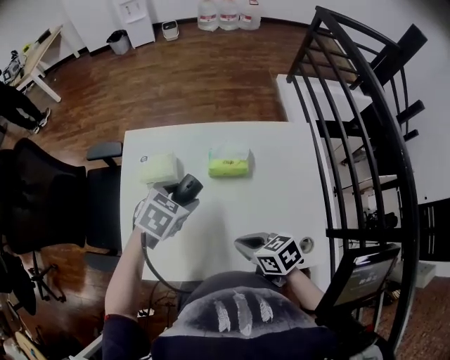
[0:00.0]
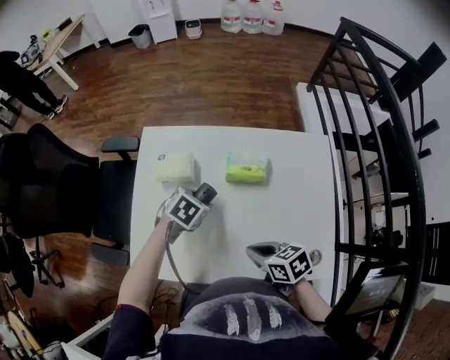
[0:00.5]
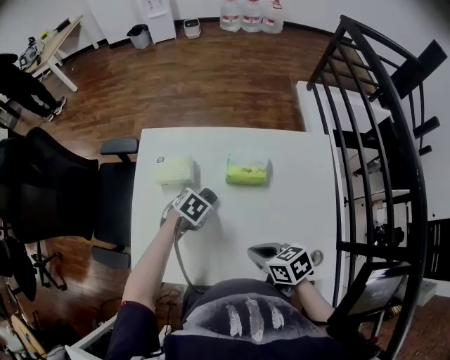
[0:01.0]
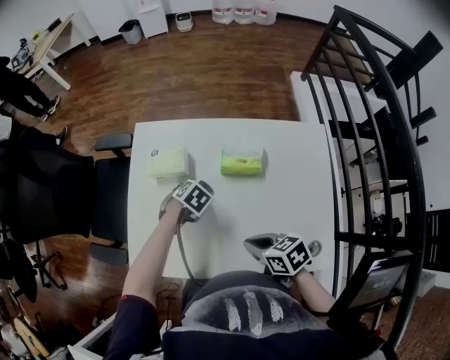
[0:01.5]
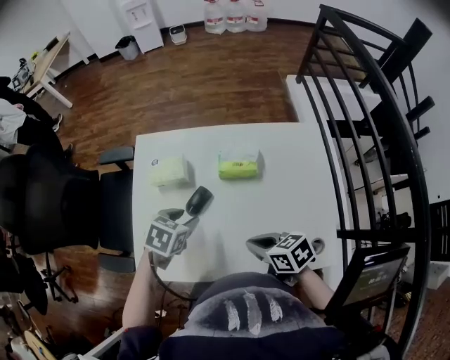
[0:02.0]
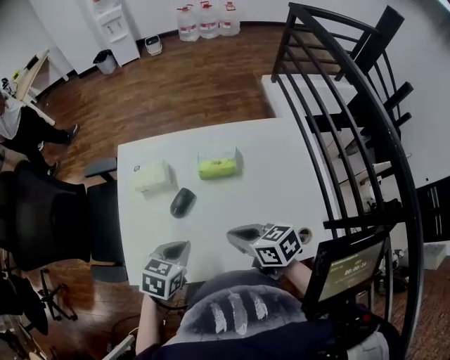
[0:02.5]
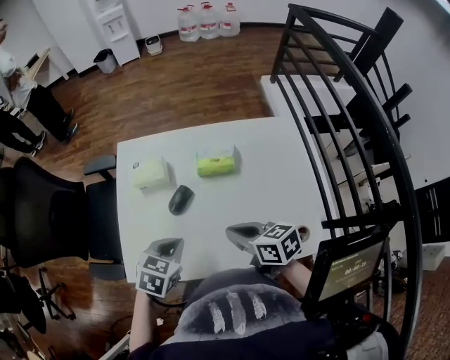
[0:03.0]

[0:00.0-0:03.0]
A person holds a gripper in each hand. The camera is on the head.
0:00.0 to 0:01.5: The left gripper travels downward by some 15 cm, and rotates some 20 degrees.
0:01.5 to 0:03.0: The left gripper is displaced upward by about 15 cm, rotates approximately 30 degrees, and closes up, while the right gripper travels upward by about 5 cm.

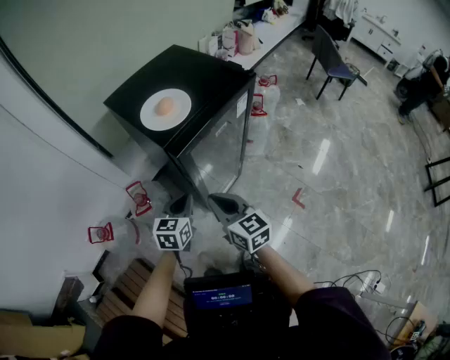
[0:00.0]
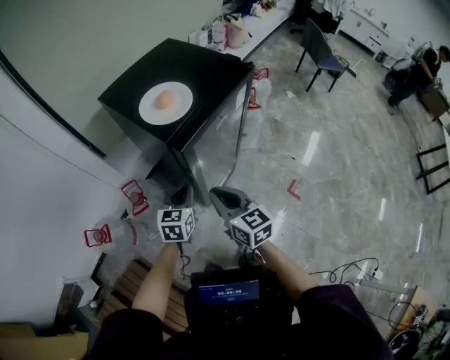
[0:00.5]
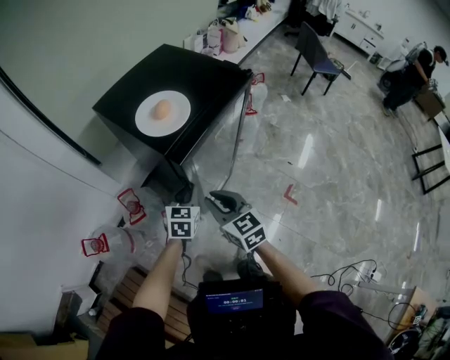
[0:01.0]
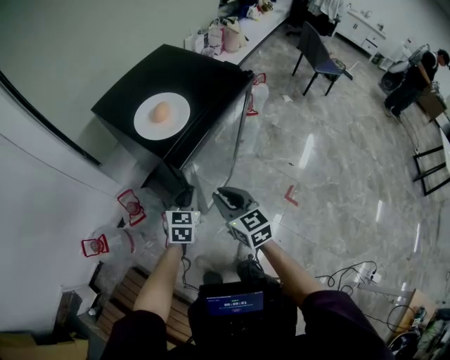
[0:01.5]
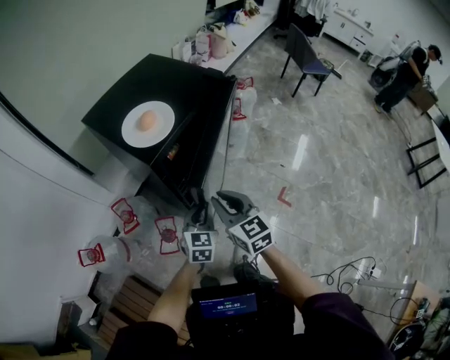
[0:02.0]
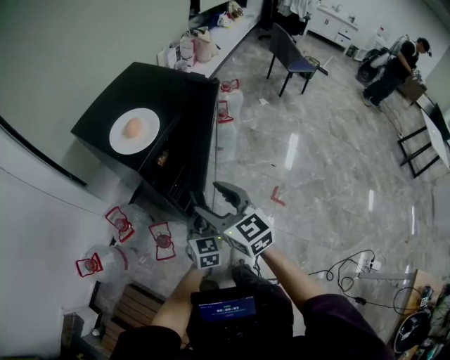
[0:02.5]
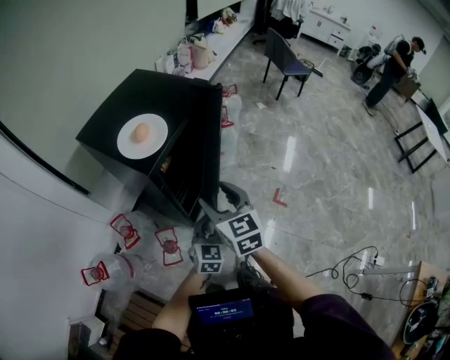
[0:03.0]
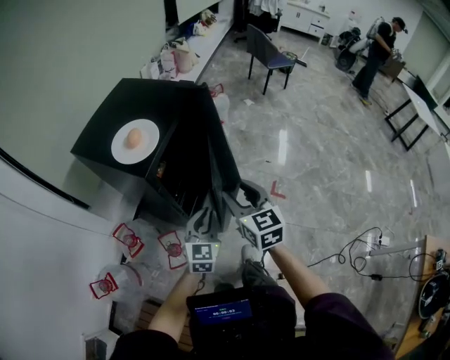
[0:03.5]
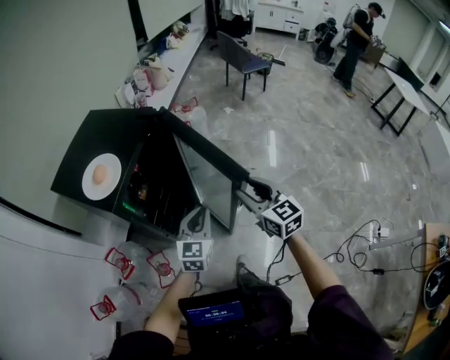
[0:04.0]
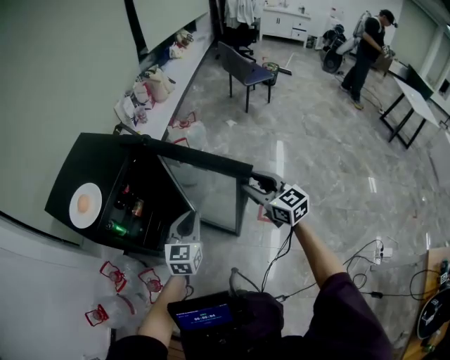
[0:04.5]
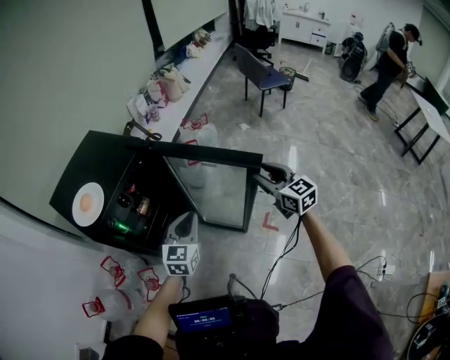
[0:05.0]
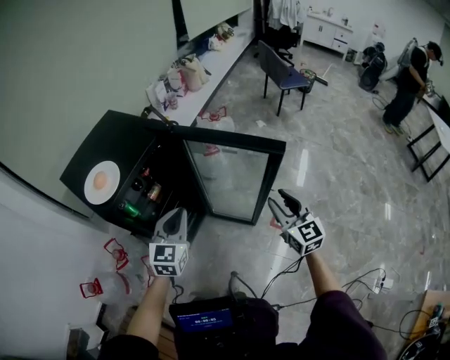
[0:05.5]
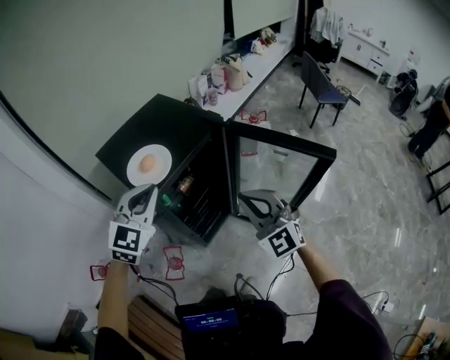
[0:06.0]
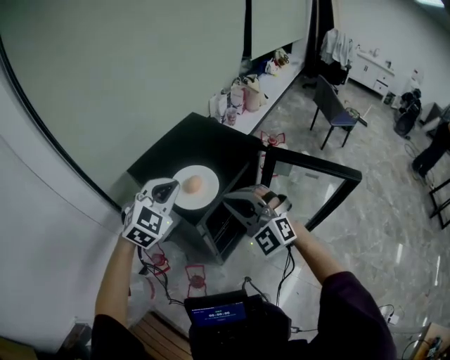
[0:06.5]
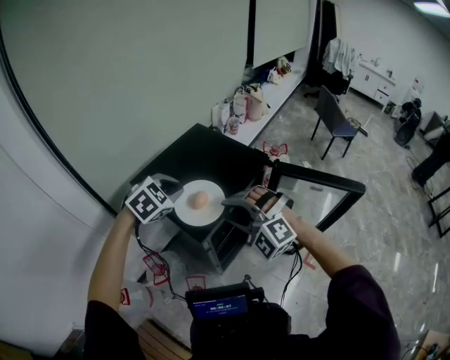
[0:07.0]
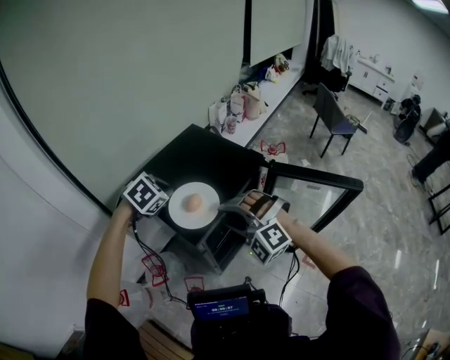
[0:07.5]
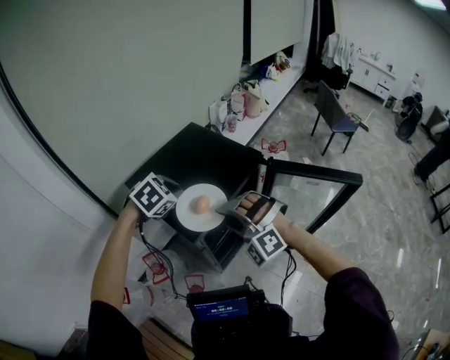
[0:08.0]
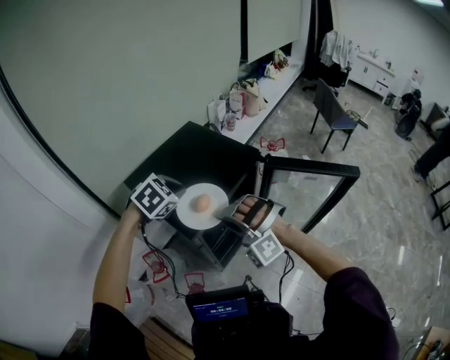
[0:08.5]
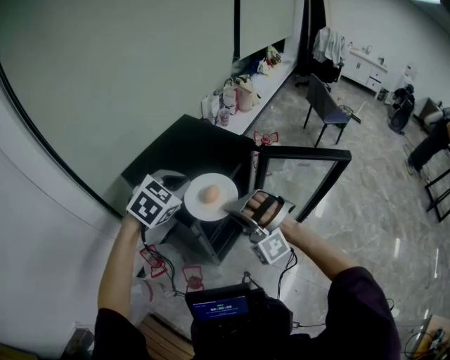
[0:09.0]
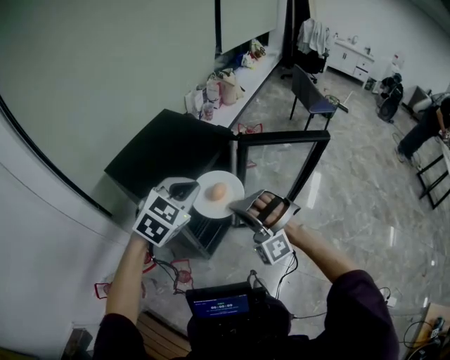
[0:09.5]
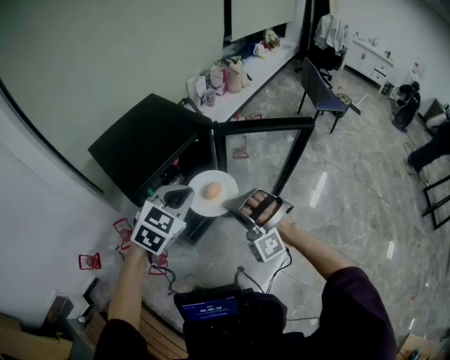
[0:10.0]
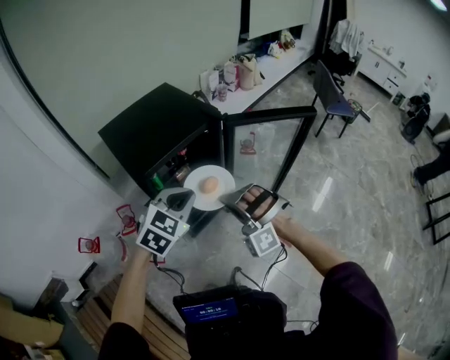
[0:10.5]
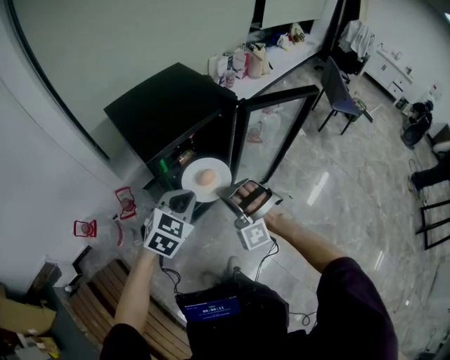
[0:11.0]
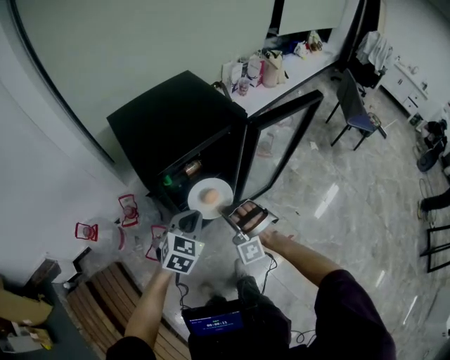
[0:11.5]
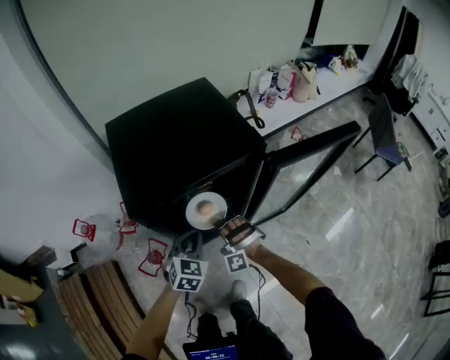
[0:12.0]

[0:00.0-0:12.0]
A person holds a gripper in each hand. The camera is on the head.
0:00.0 to 0:02.0: The left gripper travels to the right by approximately 10 cm; the right gripper ends up some 5 cm from where it was.
0:02.0 to 0:04.0: The left gripper heads to the right and upward, covering roughly 15 cm, and rotates some 20 degrees; the right gripper is displaced to the right by about 20 cm, changes its angle by about 20 degrees, and opens its fingers.
0:04.0 to 0:06.0: The right gripper heads to the left, upward and forward, covering some 15 cm, turns by about 50 degrees, and closes its fingers, while the left gripper shifts approximately 30 cm upward and to the left, and changes its angle by roughly 30 degrees.
0:06.0 to 0:08.0: The left gripper heads forward and to the left, covering about 15 cm, and points its fingers approximately 40 degrees further downward, while the right gripper heads to the left and forward, covering roughly 20 cm, twists some 50 degrees counterclockwise, seen from behind, and opens its fingers.
0:08.0 to 0:10.0: The grippers both shift to the right and backward by about 25 cm. The right gripper closes up. The left gripper changes its angle by about 20 degrees.
0:10.0 to 0:12.0: The right gripper travels downward, forward and to the left by roughly 30 cm, while the left gripper goes approximately 25 cm downward, and turns by about 40 degrees.

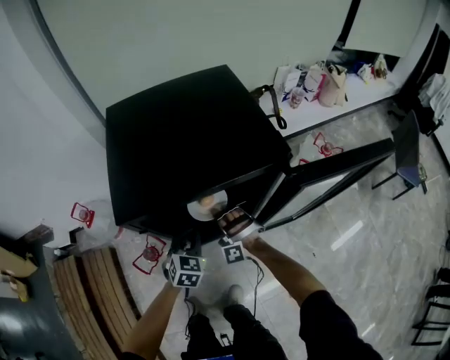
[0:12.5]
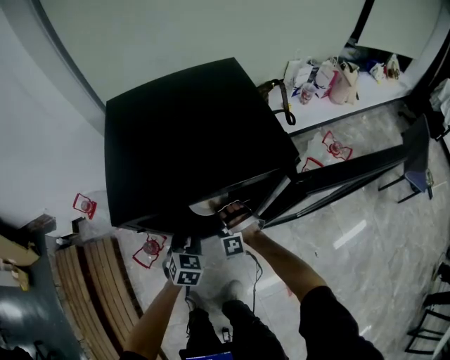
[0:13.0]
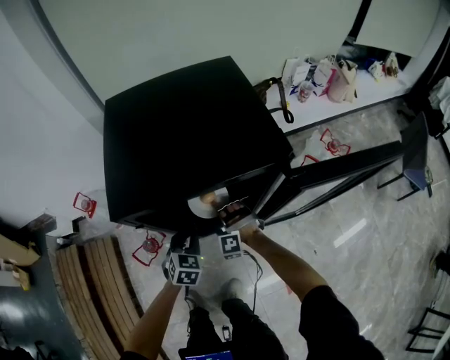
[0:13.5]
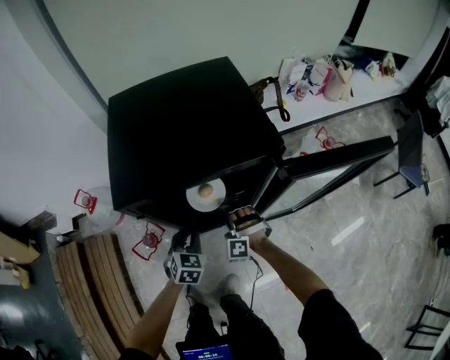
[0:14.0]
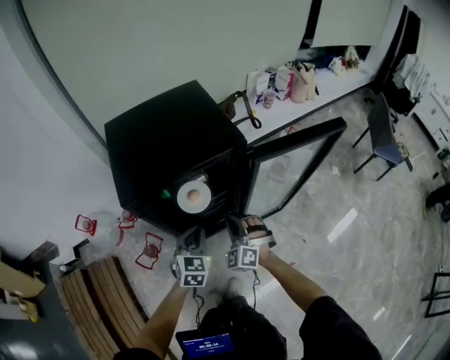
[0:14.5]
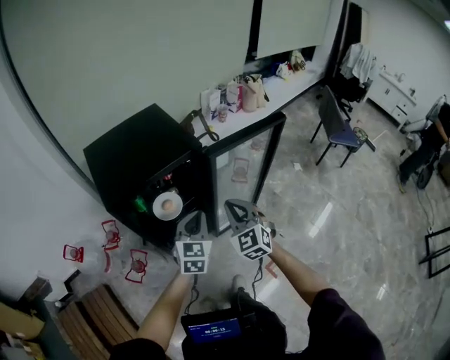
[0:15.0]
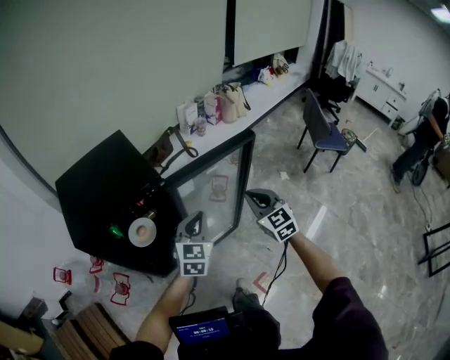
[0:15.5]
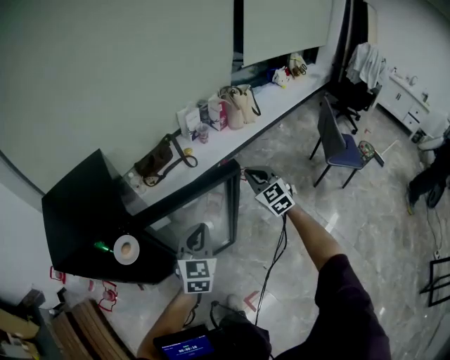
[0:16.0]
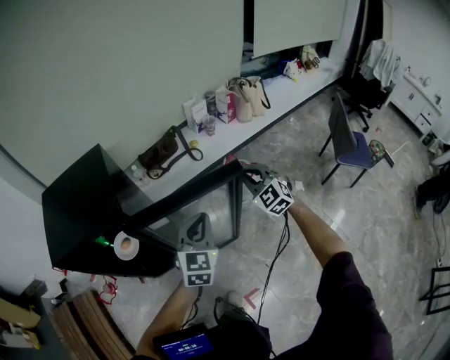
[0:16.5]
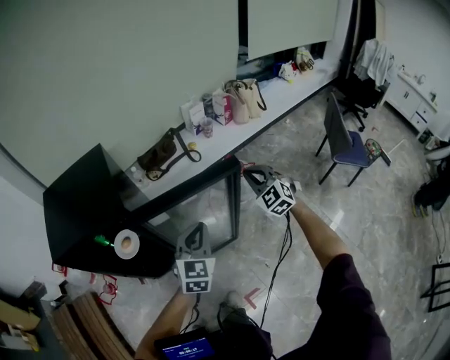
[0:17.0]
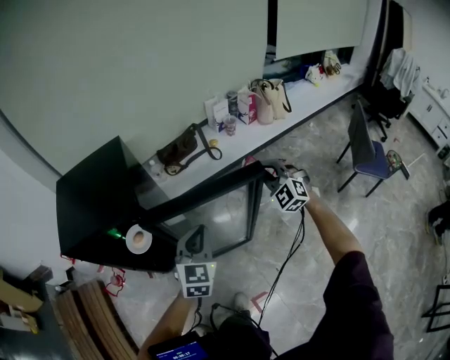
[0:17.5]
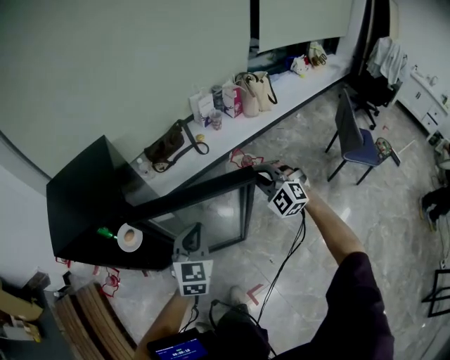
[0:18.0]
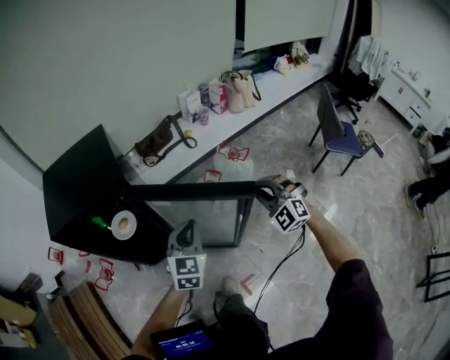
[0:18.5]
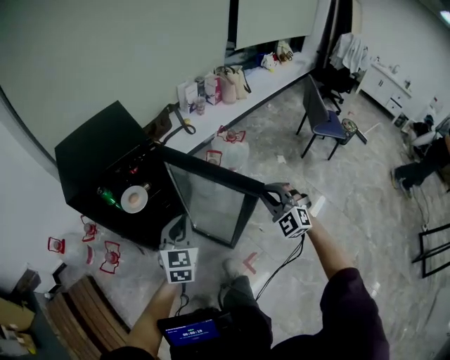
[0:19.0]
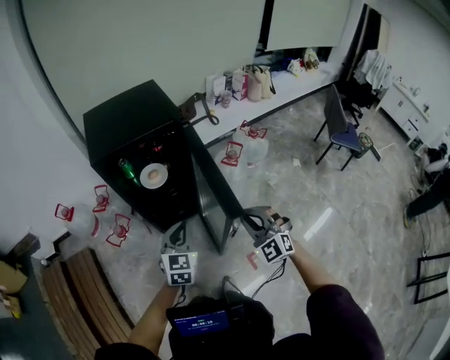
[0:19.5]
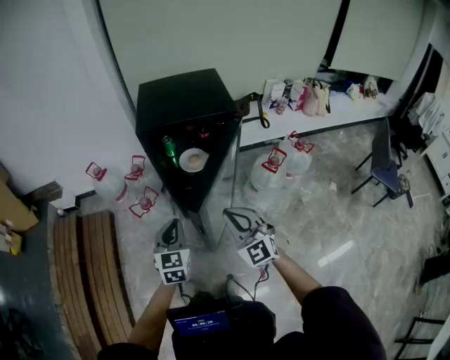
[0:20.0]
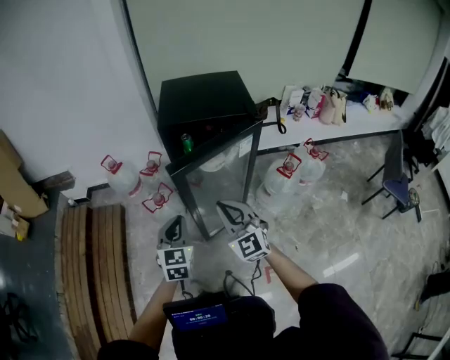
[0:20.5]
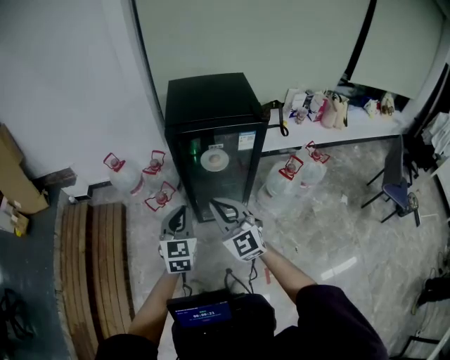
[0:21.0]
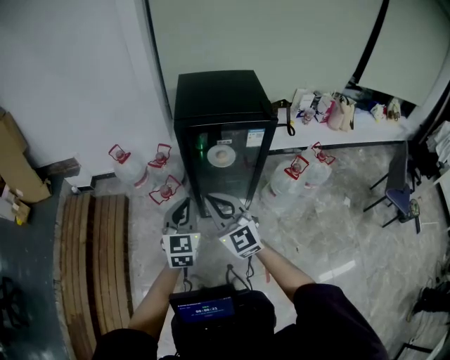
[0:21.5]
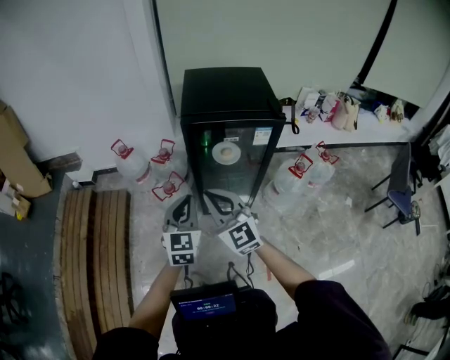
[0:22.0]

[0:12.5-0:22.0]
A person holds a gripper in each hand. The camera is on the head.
0:12.5 to 0:14.5: The left gripper is displaced upward, backward and to the right by roughly 10 cm. The right gripper moves upward and to the right, roughly 20 cm, changes its angle by about 40 degrees, and opens and closes again.
0:14.5 to 0:16.5: The two grippers travel together, to the right and forward, roughly 50 cm. The right gripper turns by approximately 20 degrees.
0:16.5 to 0:18.0: The left gripper shifts by approximately 5 cm. The right gripper swivels about 20 degrees.
0:18.0 to 0:20.0: The pair of grippers is taken some 50 cm. The right gripper swivels roughly 30 degrees. The left gripper changes its angle by roughly 30 degrees.
0:20.0 to 0:22.0: The left gripper shifts roughly 10 cm to the left and upward. Meanwhile the right gripper goes approximately 15 cm to the left and forward.

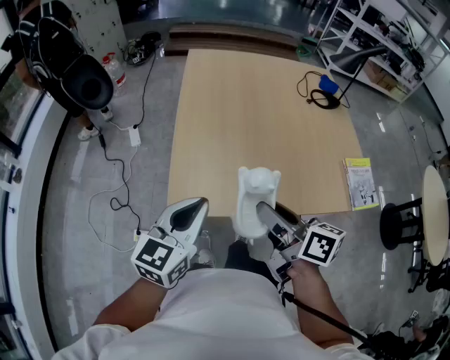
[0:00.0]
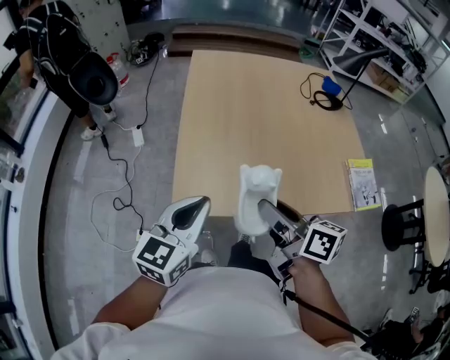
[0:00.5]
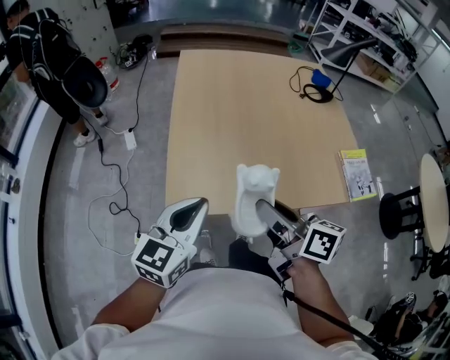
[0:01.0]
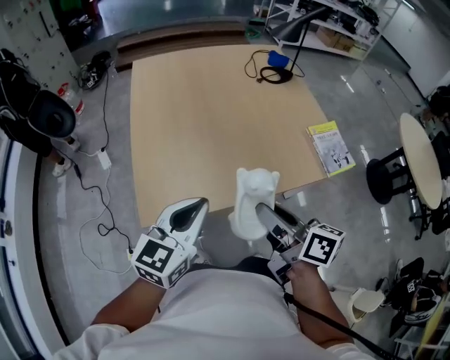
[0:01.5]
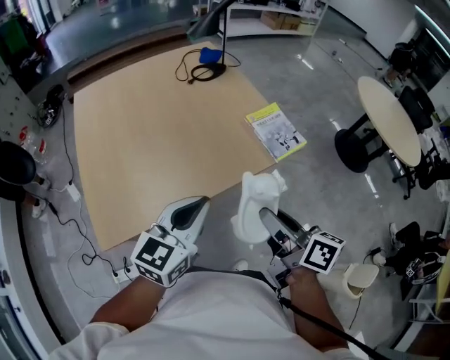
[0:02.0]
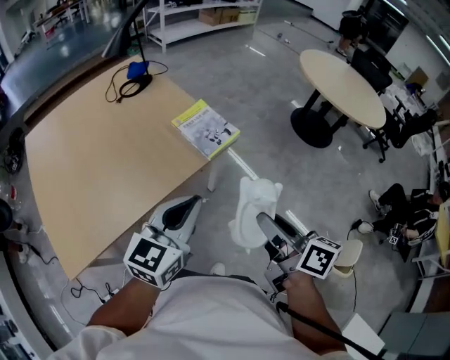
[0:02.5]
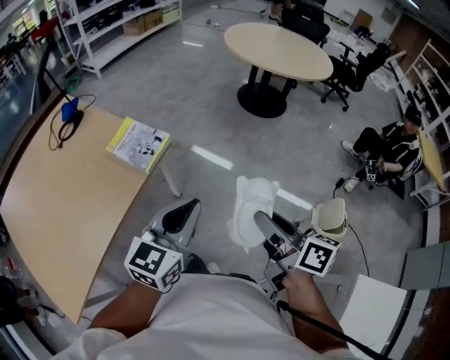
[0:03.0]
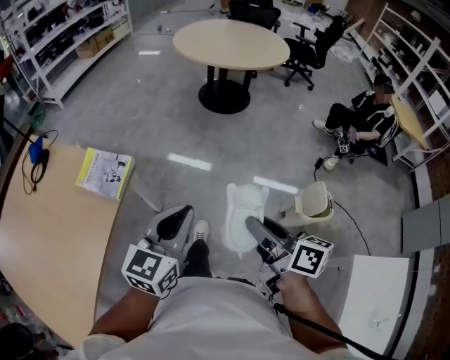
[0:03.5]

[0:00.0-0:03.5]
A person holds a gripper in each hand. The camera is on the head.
0:00.0 to 0:02.0: The left gripper ends up roughly 25 cm from where it was, and changes its angle by some 30 degrees. The right gripper ends up roughly 30 cm from where it was, and rotates roughly 30 degrees.
0:02.0 to 0:03.5: The left gripper moves approximately 40 cm, and changes its angle by approximately 40 degrees. Meanwhile the right gripper moves approximately 40 cm, and swivels approximately 40 degrees.
